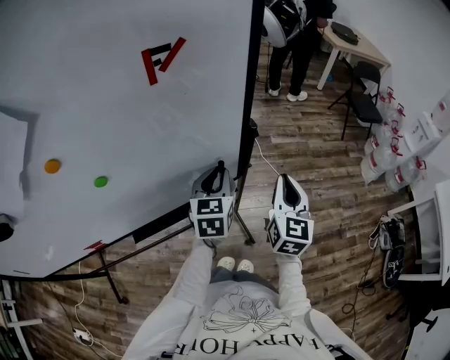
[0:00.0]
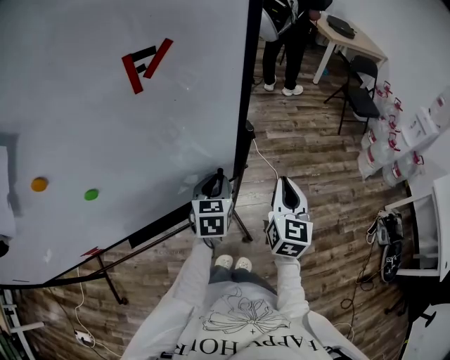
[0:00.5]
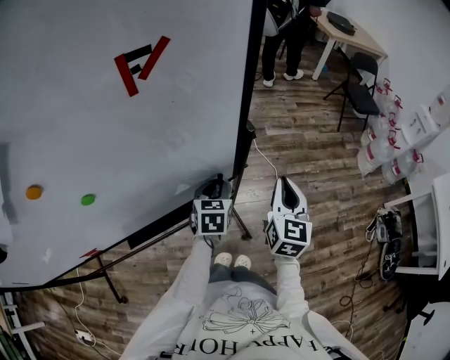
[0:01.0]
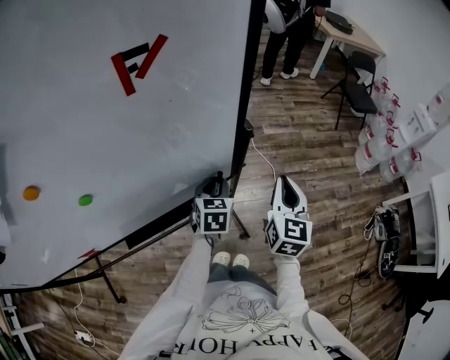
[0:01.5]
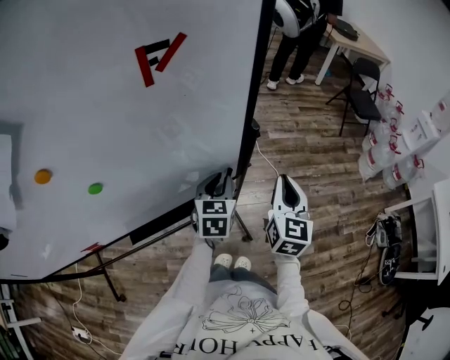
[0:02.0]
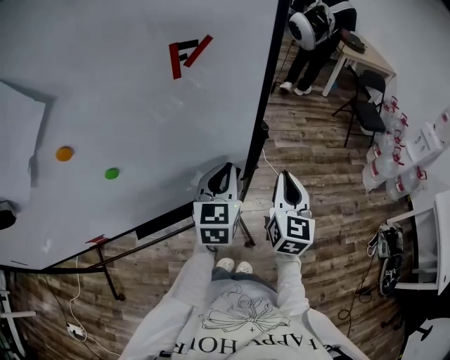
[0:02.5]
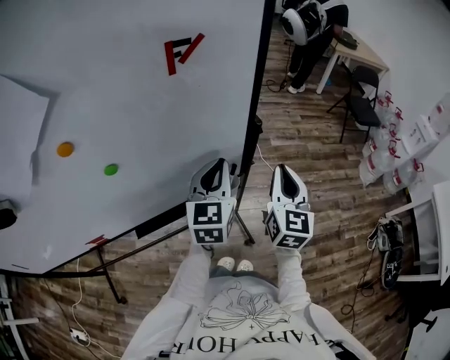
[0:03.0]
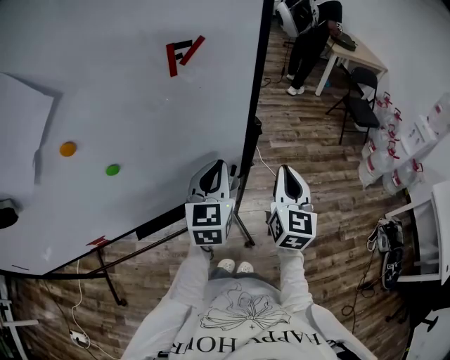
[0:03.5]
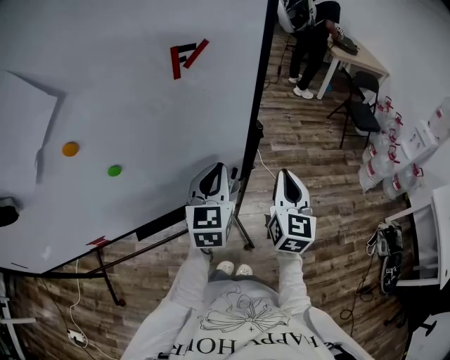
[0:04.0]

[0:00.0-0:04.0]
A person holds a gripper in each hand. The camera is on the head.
0.0 to 2.0 s: The left gripper is displaced downward by some 5 cm.
2.0 to 4.0 s: The right gripper heads upward, covering about 5 cm, while the left gripper is displaced upward by approximately 15 cm, and turns by some 20 degrees.

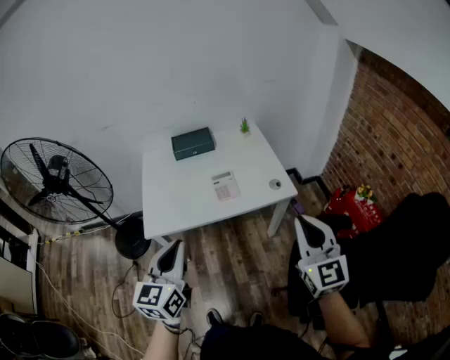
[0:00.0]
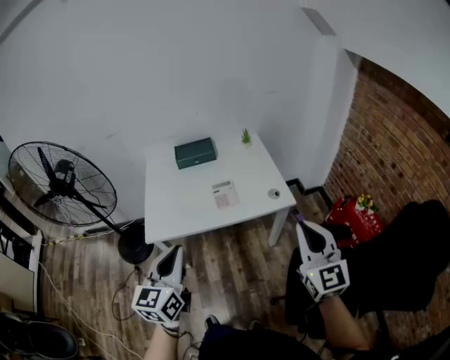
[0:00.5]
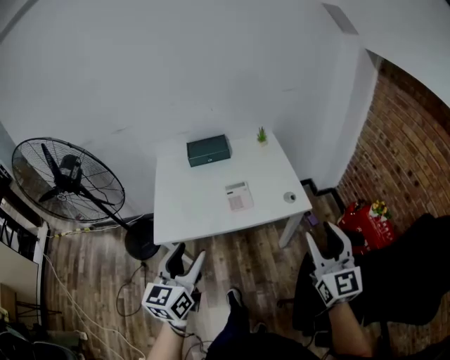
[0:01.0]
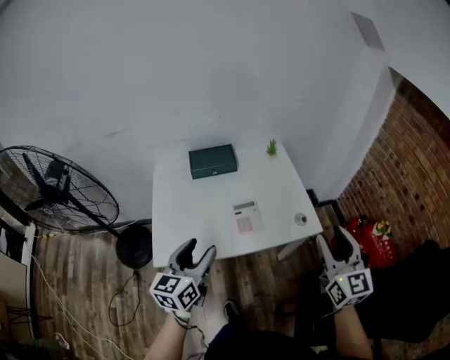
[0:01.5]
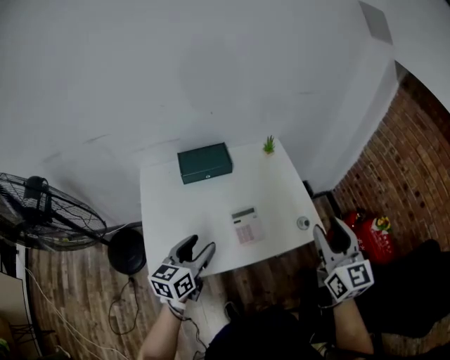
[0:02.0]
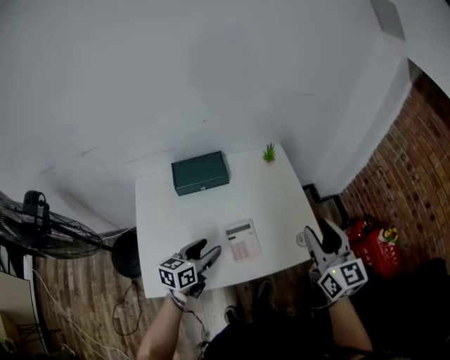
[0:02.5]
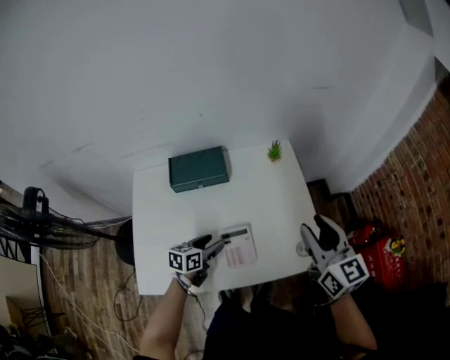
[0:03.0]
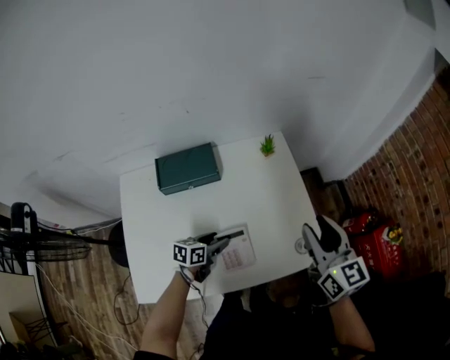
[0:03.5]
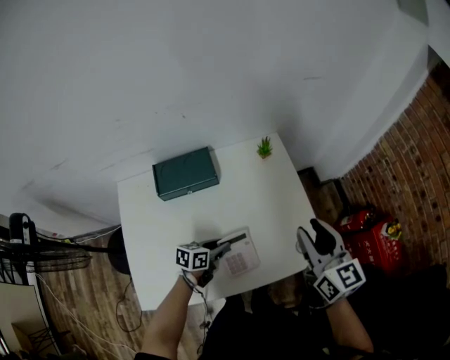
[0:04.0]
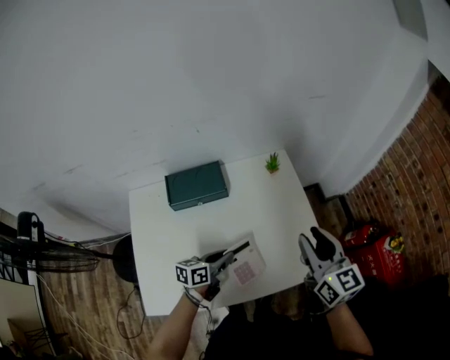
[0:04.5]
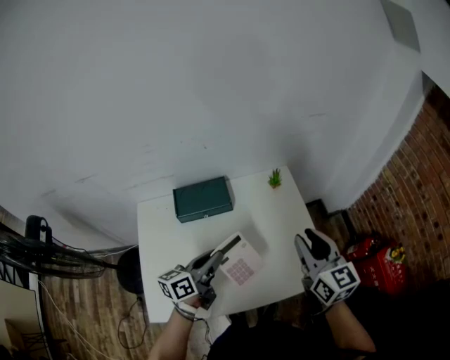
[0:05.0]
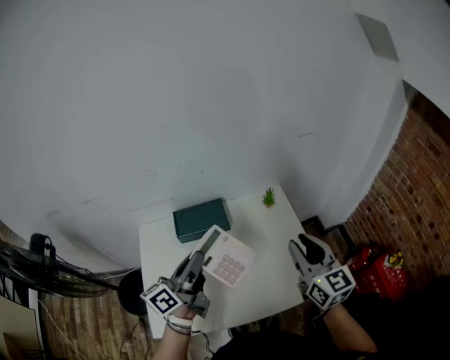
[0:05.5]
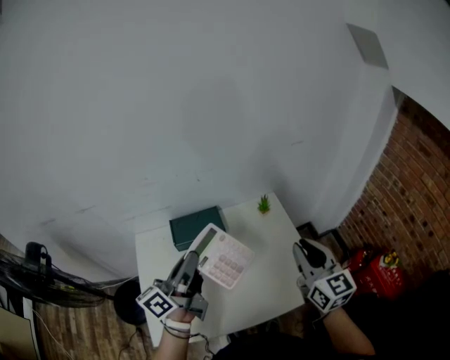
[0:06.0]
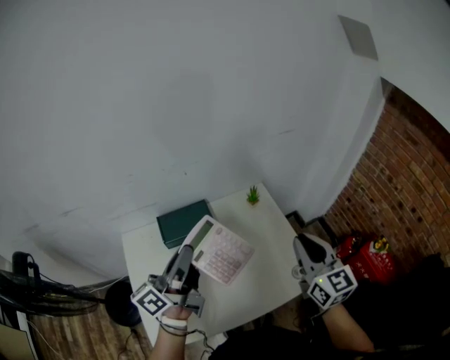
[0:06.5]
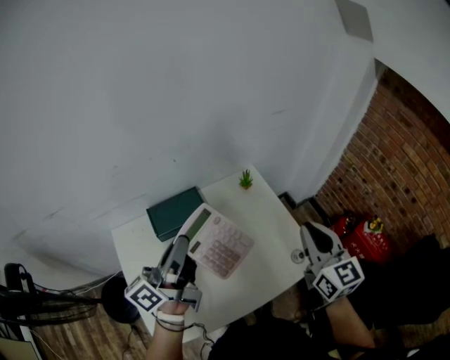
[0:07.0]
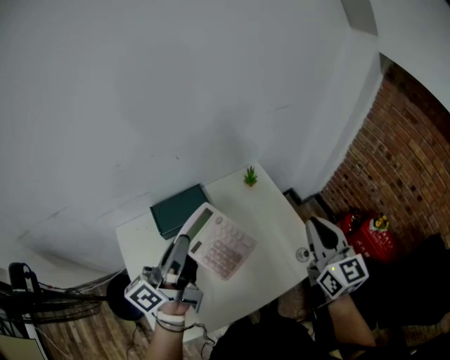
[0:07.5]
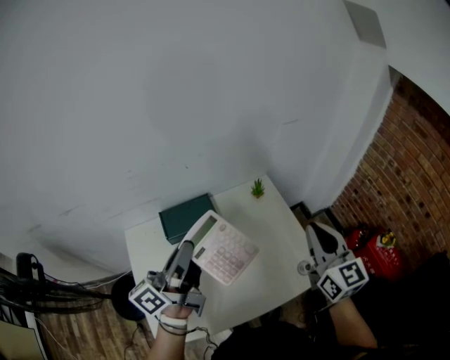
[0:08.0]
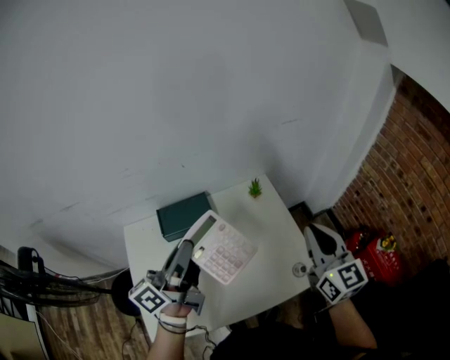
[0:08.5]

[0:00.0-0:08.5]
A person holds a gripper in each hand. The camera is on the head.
0.0 to 2.0 s: The right gripper moves forward, about 30 cm, and opens up, while the left gripper moves forward and downward, some 35 cm, rotates approximately 20 degrees, and opens up.
2.0 to 4.0 s: The left gripper heads downward, forward and to the right, covering some 30 cm, changes its angle by some 30 degrees, and closes, while the right gripper goes some 20 cm forward and downward.
4.0 to 6.5 s: The right gripper heads upward, covering about 10 cm, and closes up, while the left gripper moves upward, about 40 cm, and tips its fingers upward by approximately 50 degrees.
6.5 to 8.5 s: The right gripper shifts by roughly 5 cm.

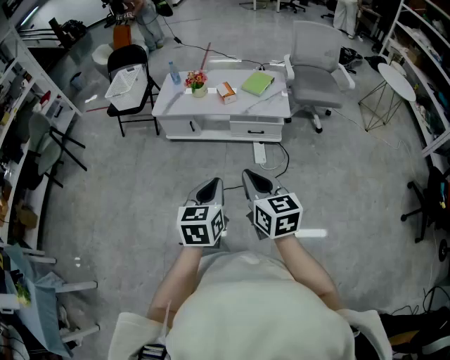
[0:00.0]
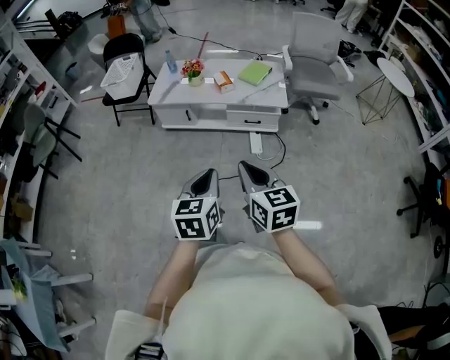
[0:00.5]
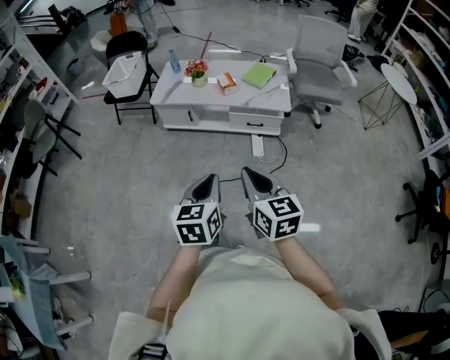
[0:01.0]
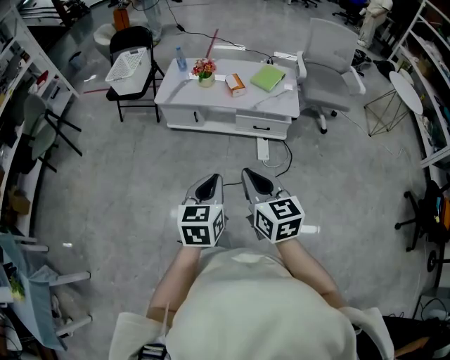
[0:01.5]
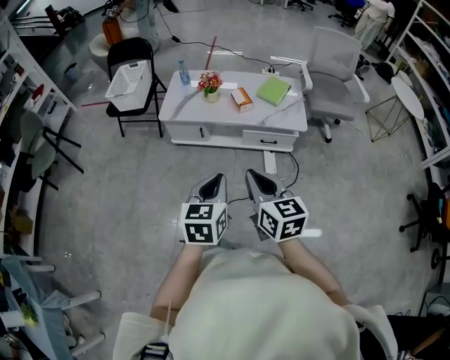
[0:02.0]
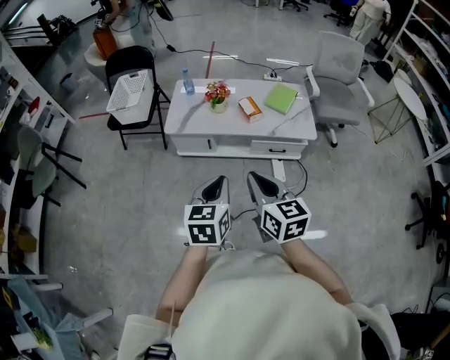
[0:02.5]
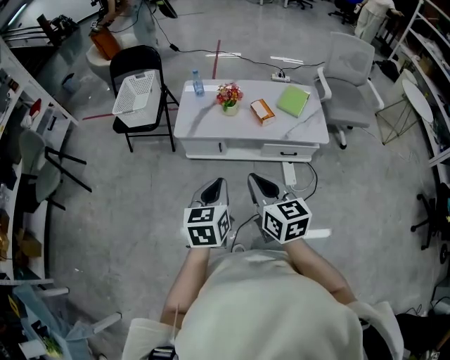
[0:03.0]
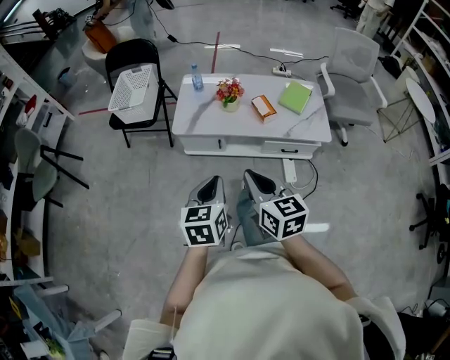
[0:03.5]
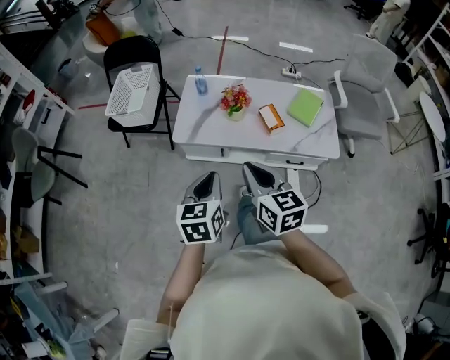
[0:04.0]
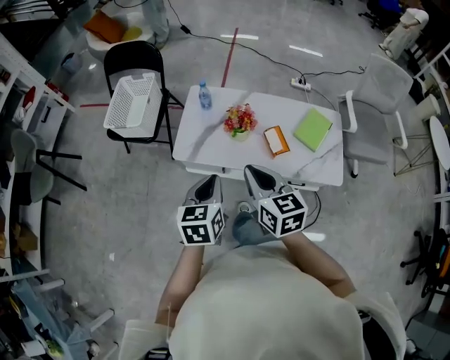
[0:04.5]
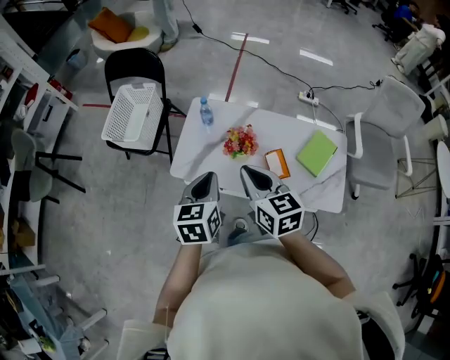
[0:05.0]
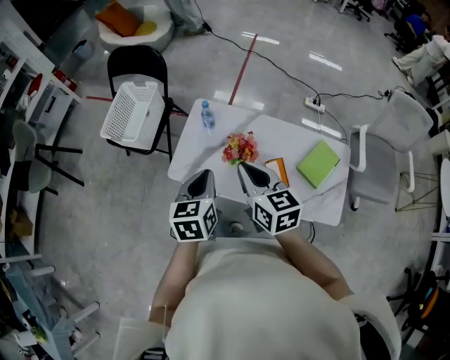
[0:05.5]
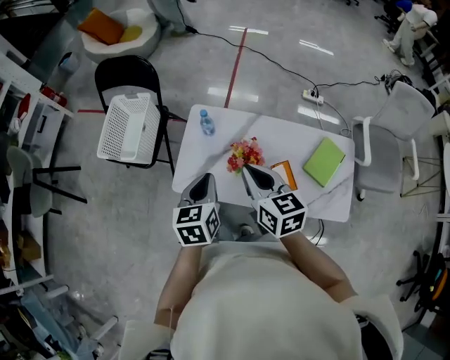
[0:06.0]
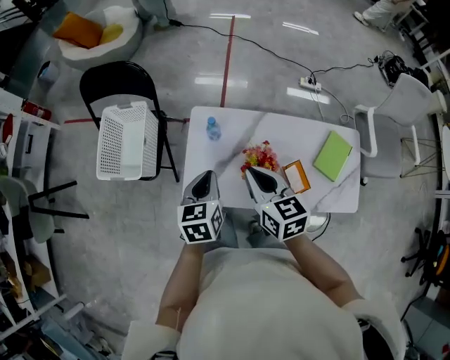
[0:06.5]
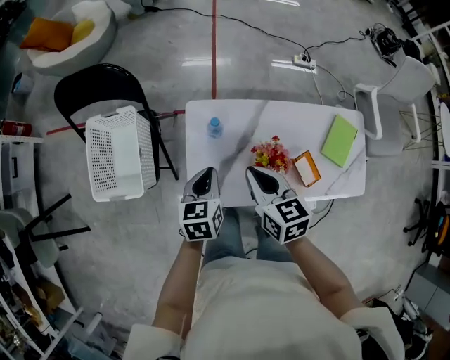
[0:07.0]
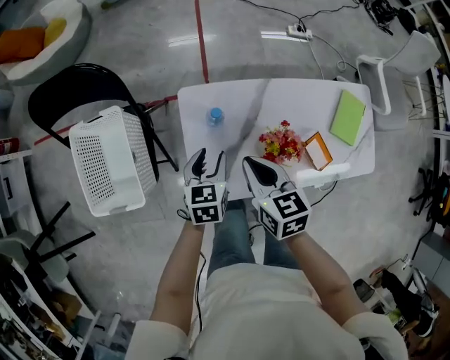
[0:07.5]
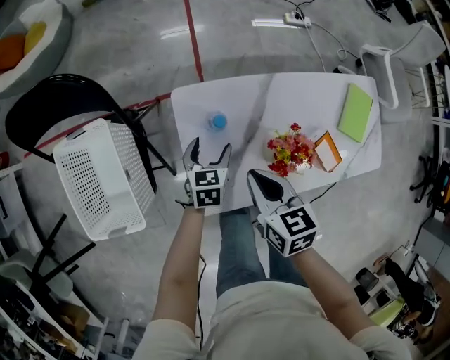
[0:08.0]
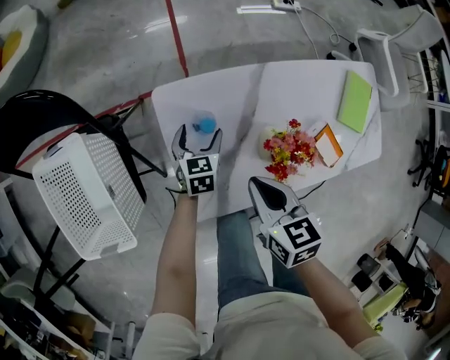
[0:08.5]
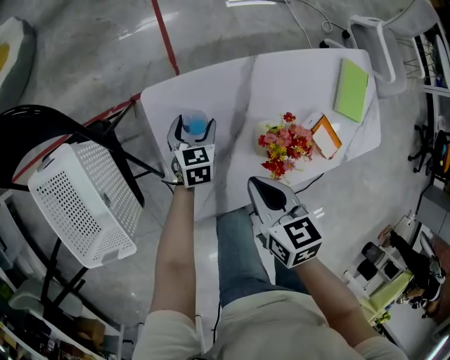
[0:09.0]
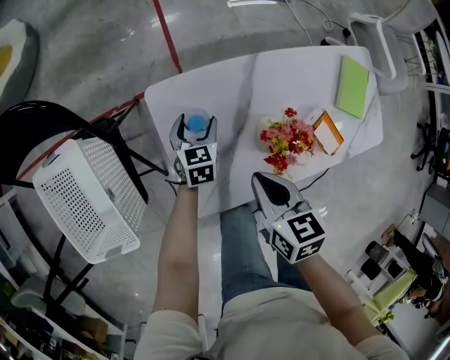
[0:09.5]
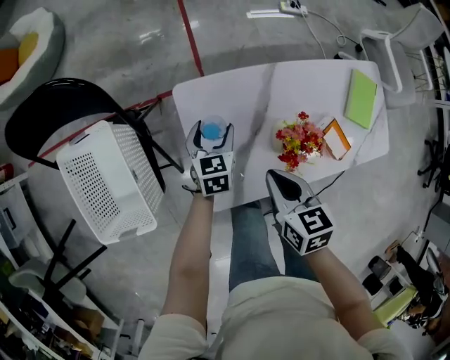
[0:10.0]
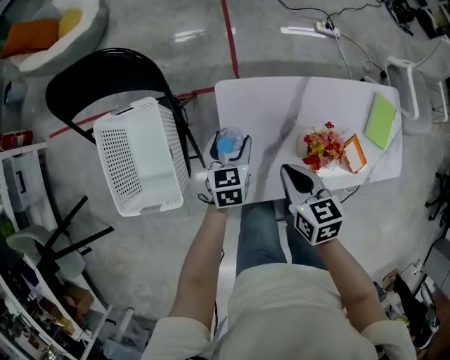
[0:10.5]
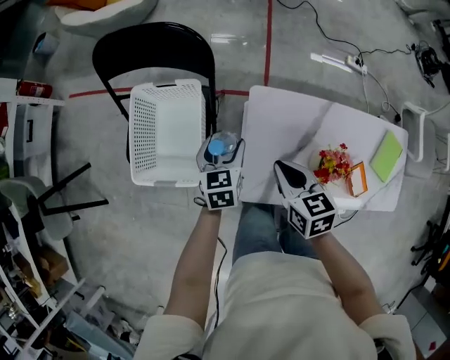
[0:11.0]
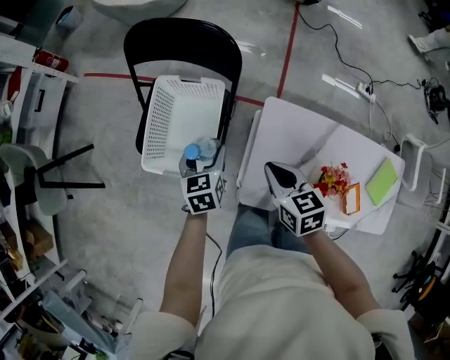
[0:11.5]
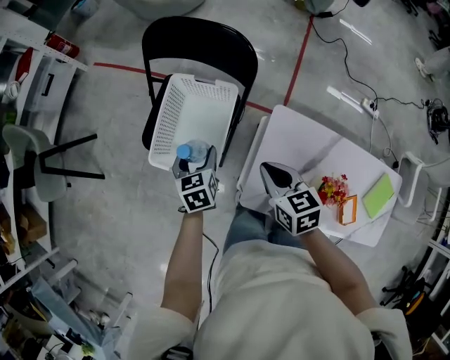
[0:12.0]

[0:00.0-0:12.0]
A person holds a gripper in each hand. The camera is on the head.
0.0 to 2.0 s: Both grippers travel together forward and to the left, approximately 20 cm.
2.0 to 4.0 s: The right gripper shifts approximately 30 cm forward. The left gripper shifts roughly 30 cm forward and to the left.
4.0 to 6.0 s: Both grippers move forward, some 35 cm.
6.0 to 8.0 s: The right gripper travels downward, forward and to the left by about 30 cm, and turns by roughly 30 degrees, while the left gripper shifts roughly 40 cm downward and forward, changes its angle by roughly 30 degrees, and opens up.
8.0 to 10.0 s: The left gripper goes downward and returns, some 10 cm each way.
10.0 to 12.0 s: The left gripper changes place by approximately 40 cm, and rotates roughly 40 degrees. The right gripper moves some 25 cm, and rotates roughly 40 degrees.

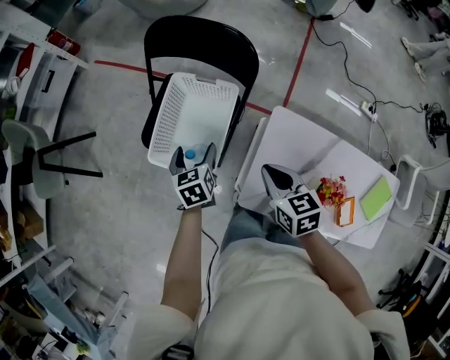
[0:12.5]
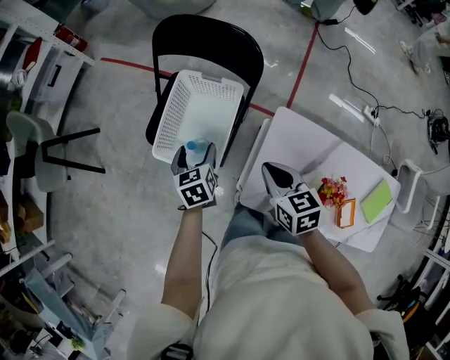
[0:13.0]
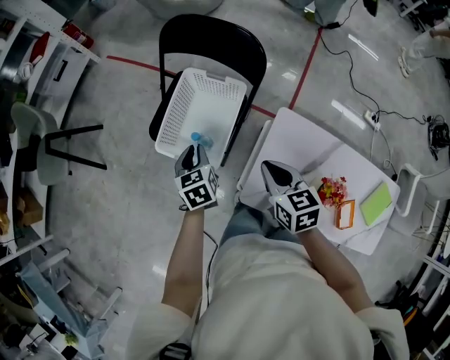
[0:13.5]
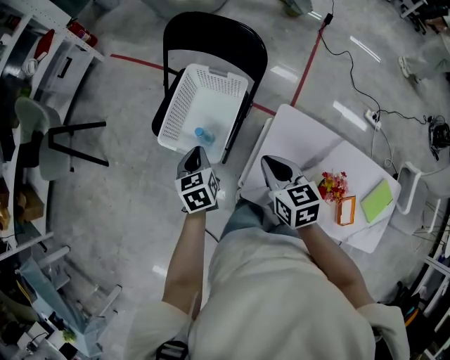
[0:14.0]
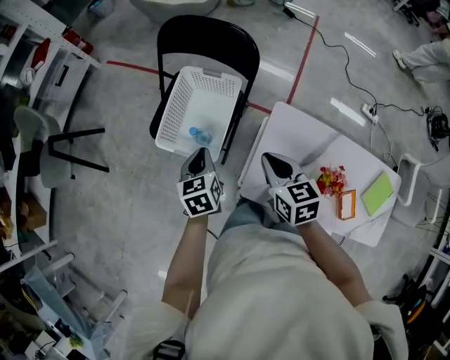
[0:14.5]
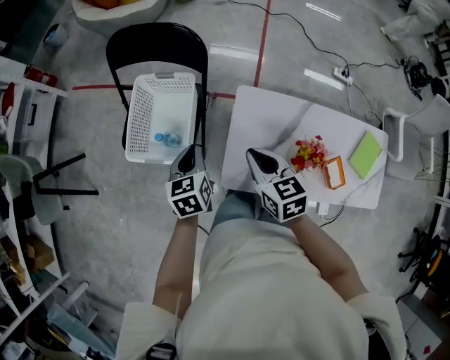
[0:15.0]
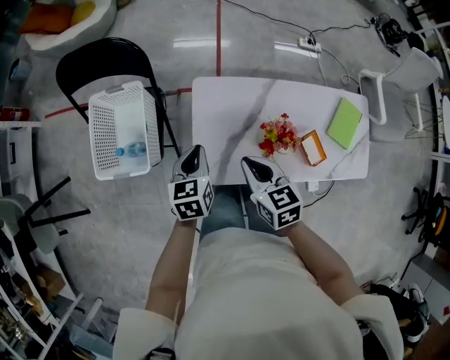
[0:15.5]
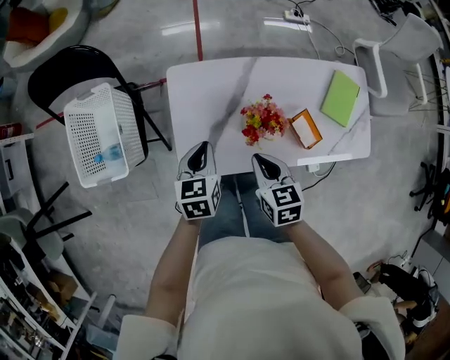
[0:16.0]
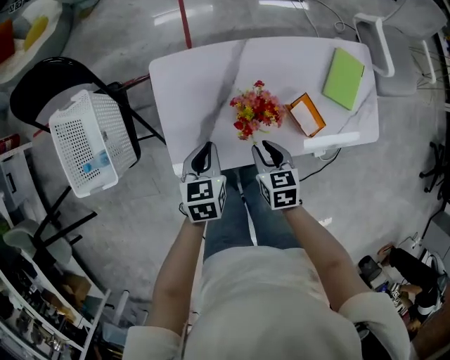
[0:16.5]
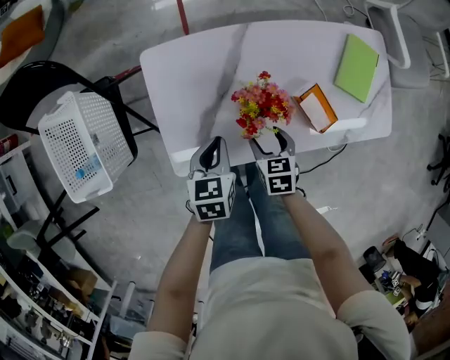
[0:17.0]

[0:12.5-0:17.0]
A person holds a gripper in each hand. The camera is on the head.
12.5 to 14.5 s: The right gripper shifts by about 5 cm; the left gripper moves backward and upward, some 10 cm, and closes up.
14.5 to 17.0 s: The right gripper changes place by roughly 50 cm, changes its angle by approximately 40 degrees, and opens its fingers. Meanwhile the left gripper ends up roughly 40 cm from where it was, and swivels some 50 degrees.
